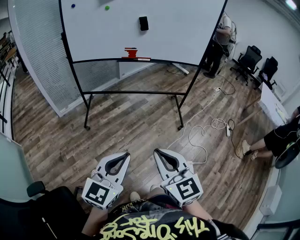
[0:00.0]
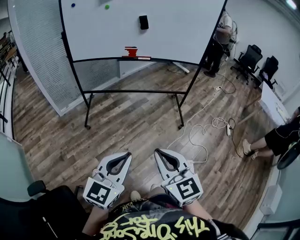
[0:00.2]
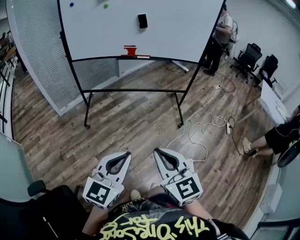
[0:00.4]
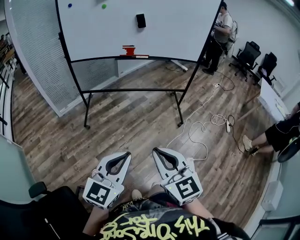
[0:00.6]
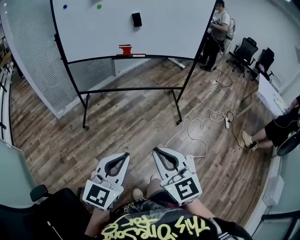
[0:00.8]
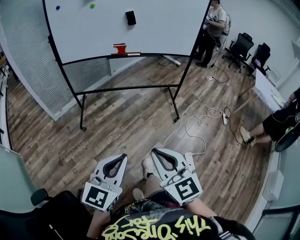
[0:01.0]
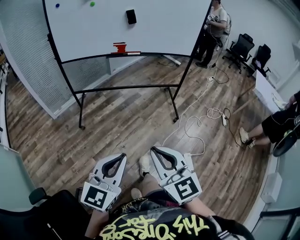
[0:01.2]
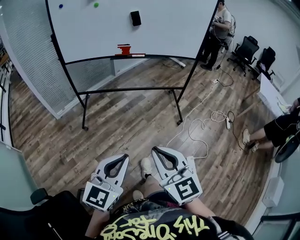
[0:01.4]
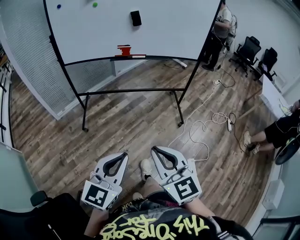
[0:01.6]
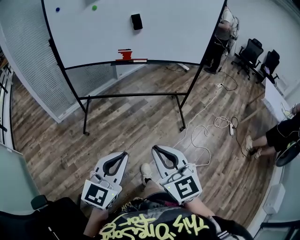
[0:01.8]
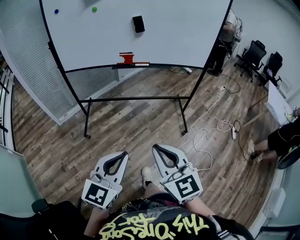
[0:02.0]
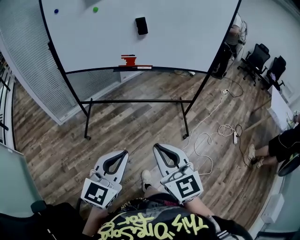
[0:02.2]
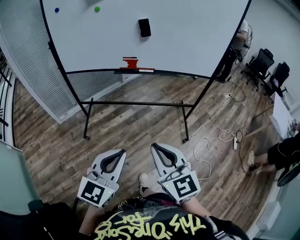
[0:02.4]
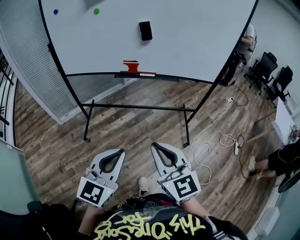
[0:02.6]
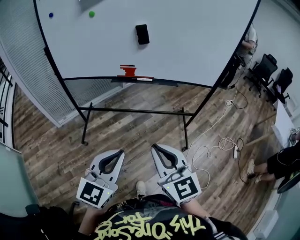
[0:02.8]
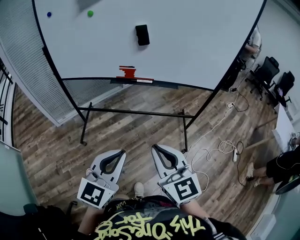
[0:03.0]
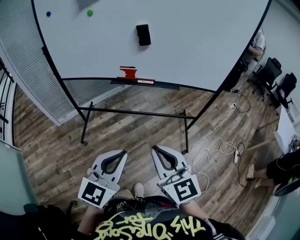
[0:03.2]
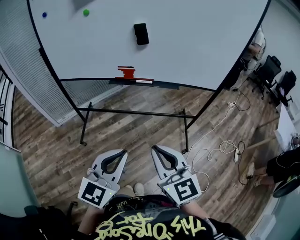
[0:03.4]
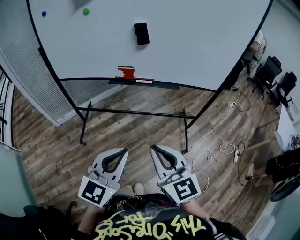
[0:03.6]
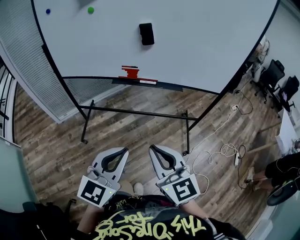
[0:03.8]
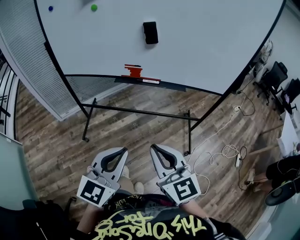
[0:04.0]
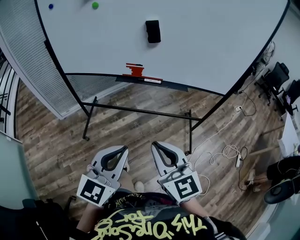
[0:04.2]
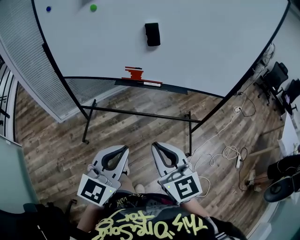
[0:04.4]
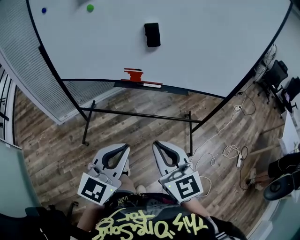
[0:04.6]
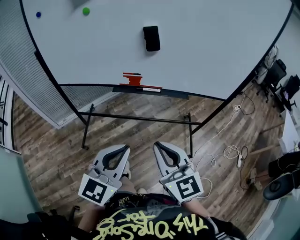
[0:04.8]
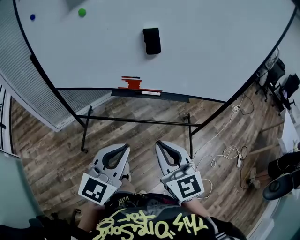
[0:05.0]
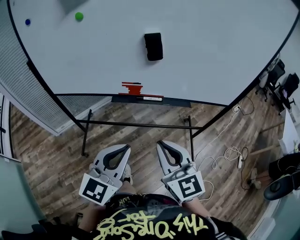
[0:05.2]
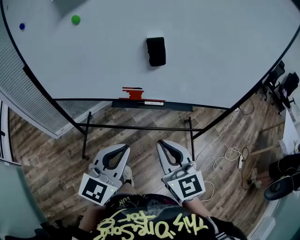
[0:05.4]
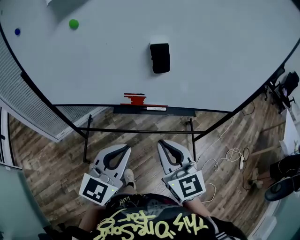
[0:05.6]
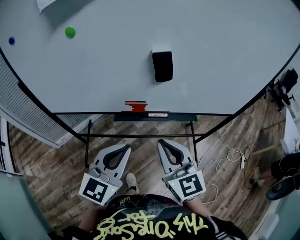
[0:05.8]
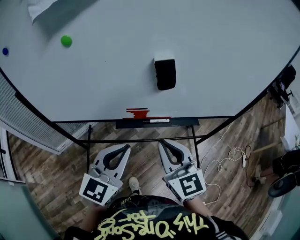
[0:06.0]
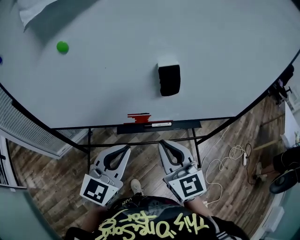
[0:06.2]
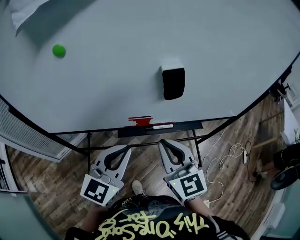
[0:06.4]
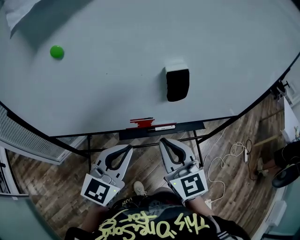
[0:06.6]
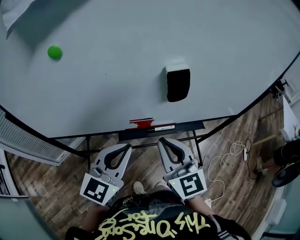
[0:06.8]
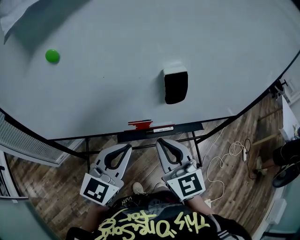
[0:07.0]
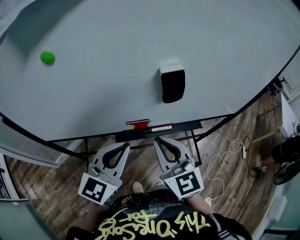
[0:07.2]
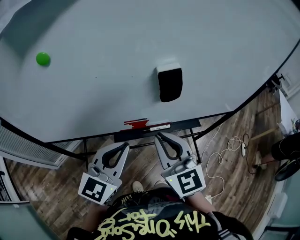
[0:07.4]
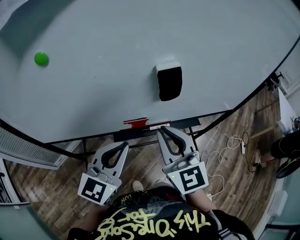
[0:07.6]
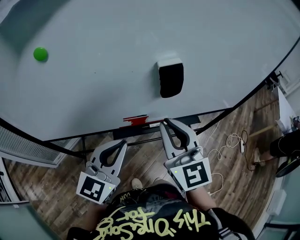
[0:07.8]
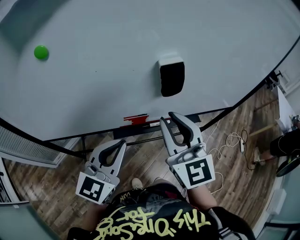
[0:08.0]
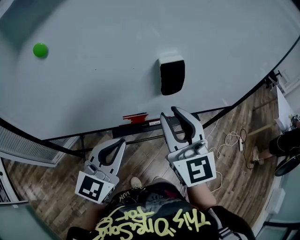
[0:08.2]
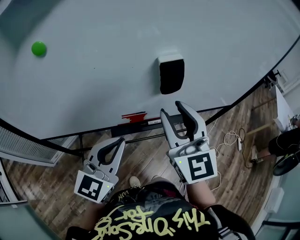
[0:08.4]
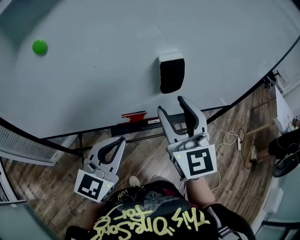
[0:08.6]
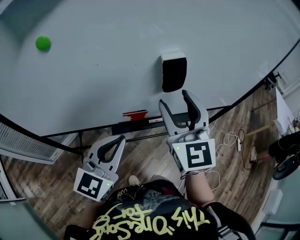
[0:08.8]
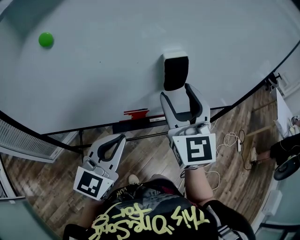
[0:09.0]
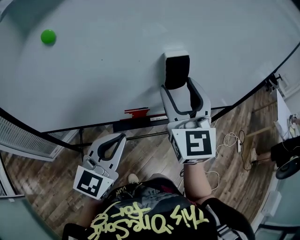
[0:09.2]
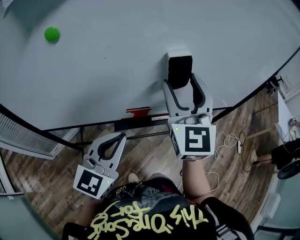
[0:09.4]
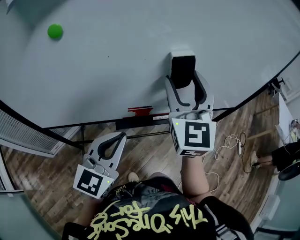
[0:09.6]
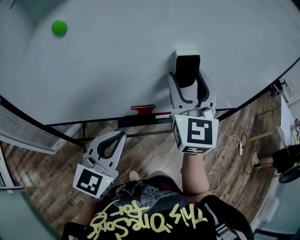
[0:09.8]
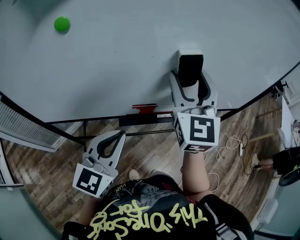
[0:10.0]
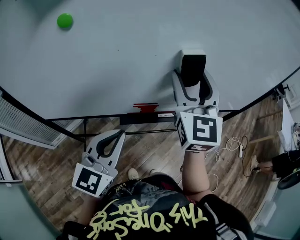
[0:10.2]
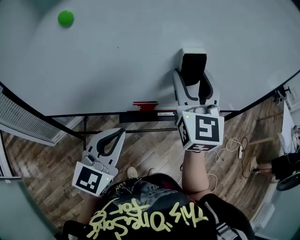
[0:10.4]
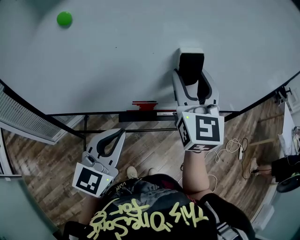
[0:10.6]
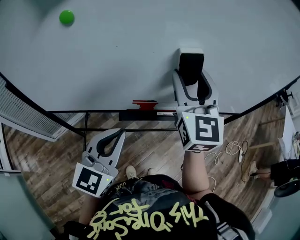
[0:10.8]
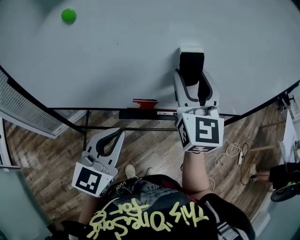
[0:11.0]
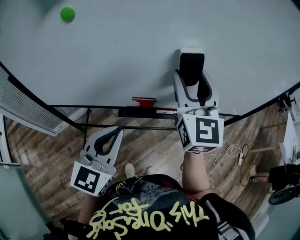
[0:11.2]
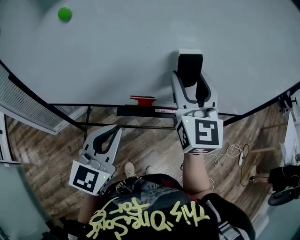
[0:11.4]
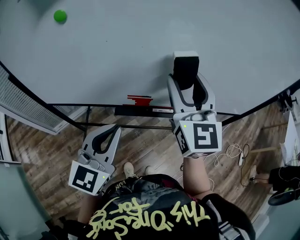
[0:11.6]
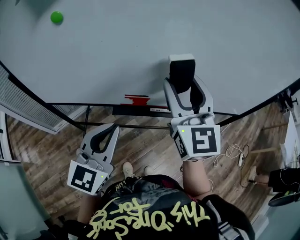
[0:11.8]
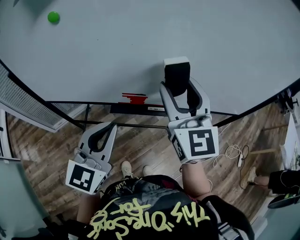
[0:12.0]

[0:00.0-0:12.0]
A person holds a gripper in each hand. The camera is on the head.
0:00.0 to 0:01.6: Both grippers move forward, about 5 cm.
0:01.6 to 0:03.0: Both grippers travel together forward, approximately 25 cm.
0:03.0 to 0:04.4: Both grippers move forward, about 5 cm.
0:04.4 to 0:06.0: The grippers both shift forward by about 25 cm.
0:06.0 to 0:07.6: The grippers both shift forward by about 5 cm.
0:07.6 to 0:09.0: The right gripper shifts about 10 cm forward and upward, and opens up.
0:09.0 to 0:10.4: The grippers move only a little.
0:10.4 to 0:12.0: The right gripper moves approximately 5 cm.

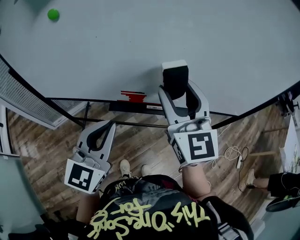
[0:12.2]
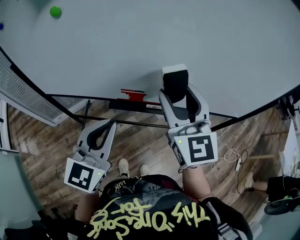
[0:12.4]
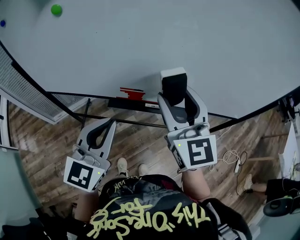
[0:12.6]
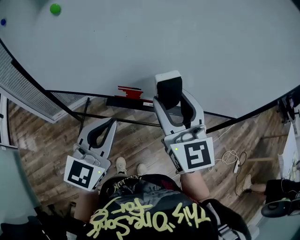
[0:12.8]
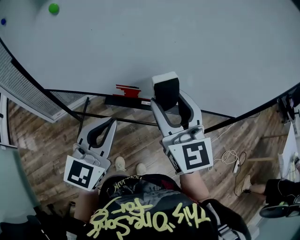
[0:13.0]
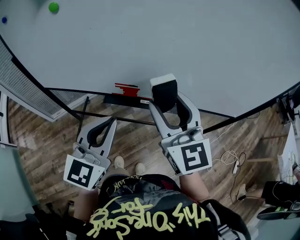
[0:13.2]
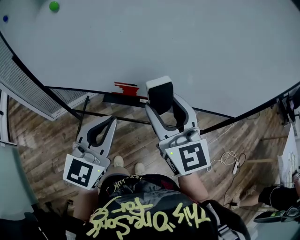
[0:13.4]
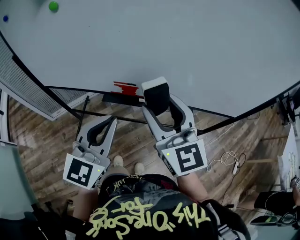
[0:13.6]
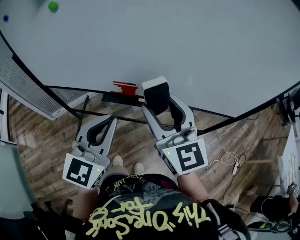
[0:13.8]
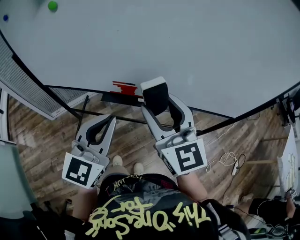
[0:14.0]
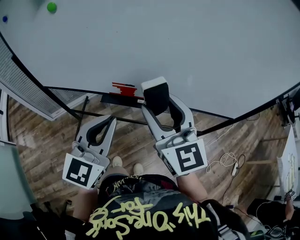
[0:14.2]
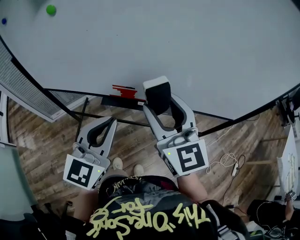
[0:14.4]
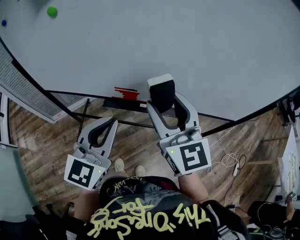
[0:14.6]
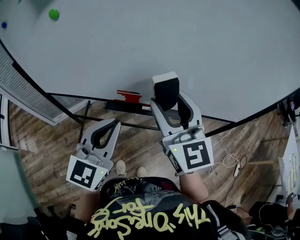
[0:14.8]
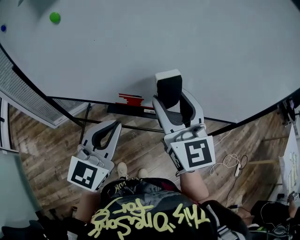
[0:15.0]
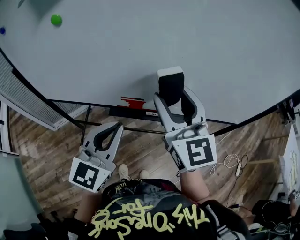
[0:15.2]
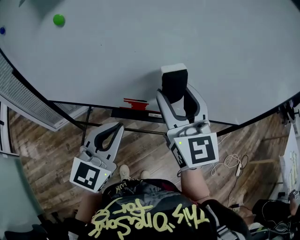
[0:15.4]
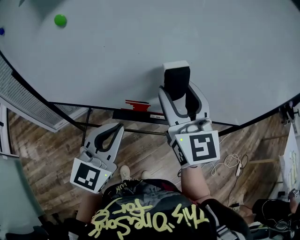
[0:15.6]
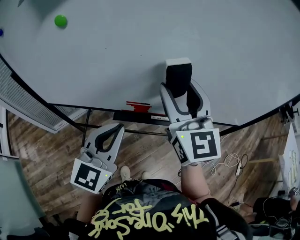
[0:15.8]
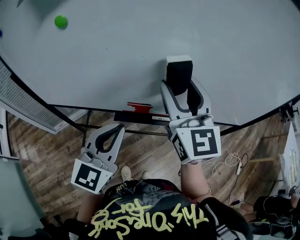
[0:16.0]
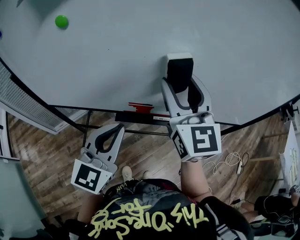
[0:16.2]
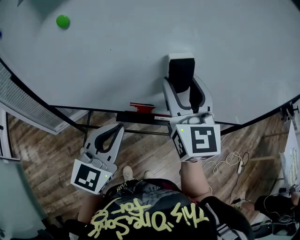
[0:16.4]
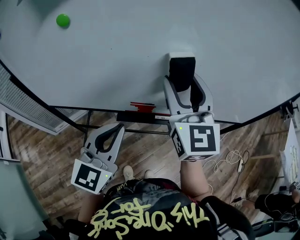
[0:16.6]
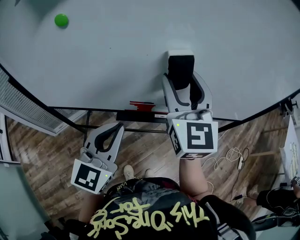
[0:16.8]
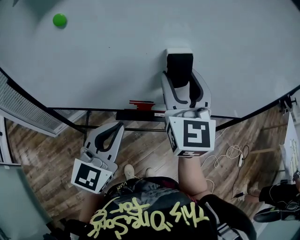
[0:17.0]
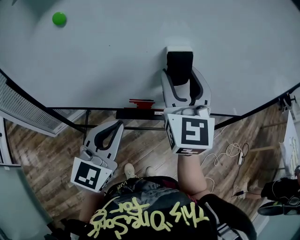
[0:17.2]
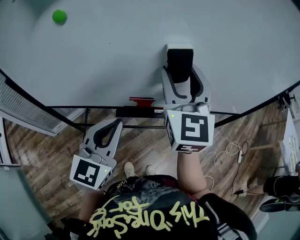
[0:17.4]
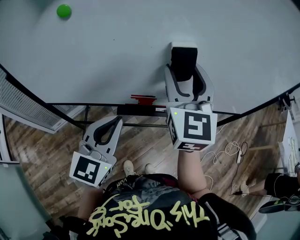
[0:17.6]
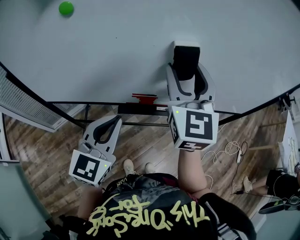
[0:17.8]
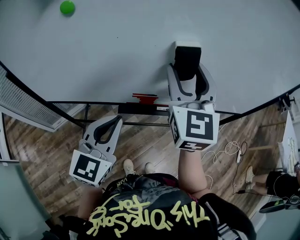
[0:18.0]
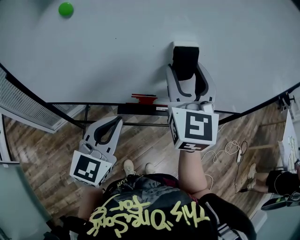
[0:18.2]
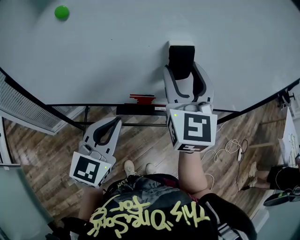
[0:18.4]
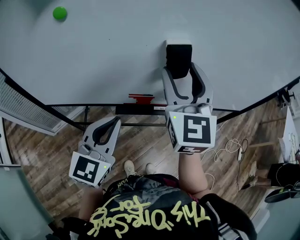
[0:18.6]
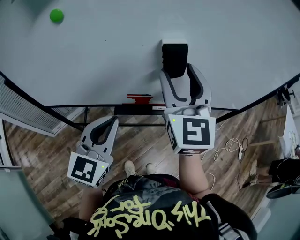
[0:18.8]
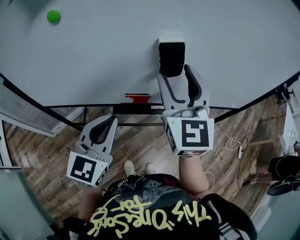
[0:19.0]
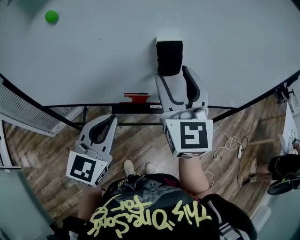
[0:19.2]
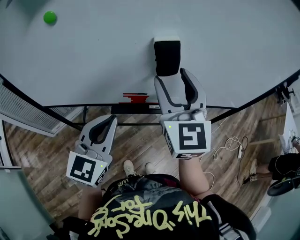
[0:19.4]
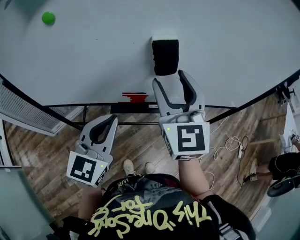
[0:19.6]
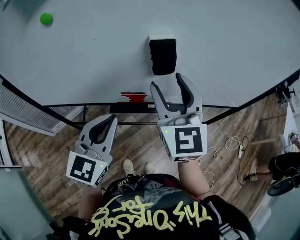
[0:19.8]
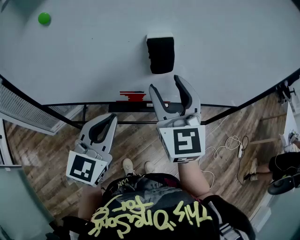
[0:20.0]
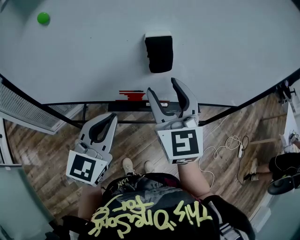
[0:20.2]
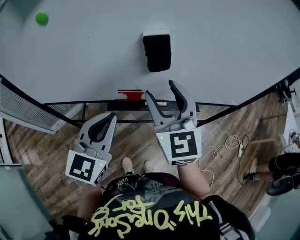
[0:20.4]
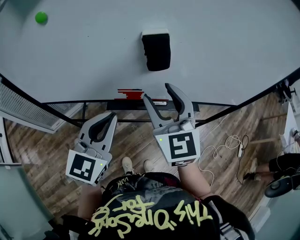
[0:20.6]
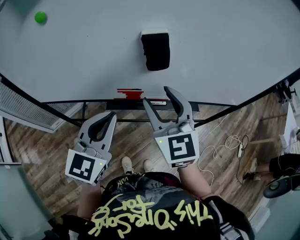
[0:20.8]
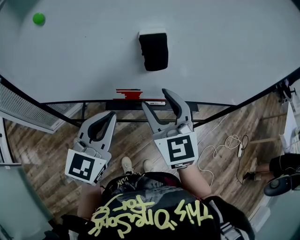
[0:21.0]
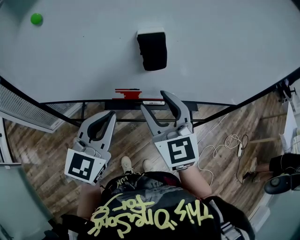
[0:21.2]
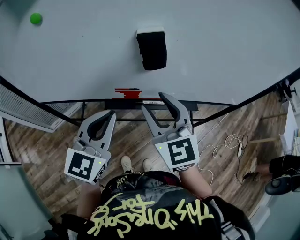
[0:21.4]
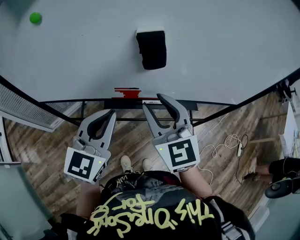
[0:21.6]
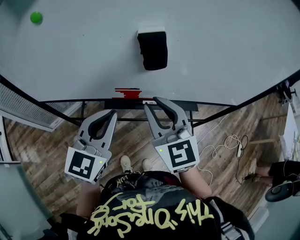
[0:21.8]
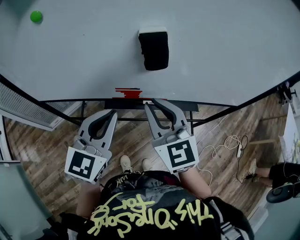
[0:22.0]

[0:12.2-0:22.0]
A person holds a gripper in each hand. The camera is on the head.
0:12.2 to 0:13.6: The right gripper travels backward by about 5 cm.
0:13.6 to 0:15.0: The grippers make only small movements.
0:15.0 to 0:16.4: The right gripper heads forward, covering about 5 cm.
0:16.4 to 0:19.2: The grippers move only a little.
0:19.2 to 0:20.6: The right gripper moves downward, approximately 5 cm.
0:20.6 to 0:22.0: The right gripper closes its fingers.

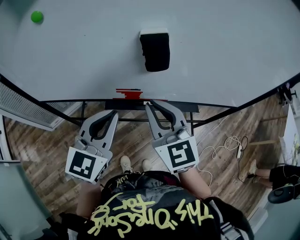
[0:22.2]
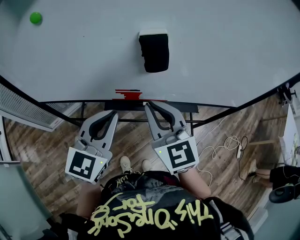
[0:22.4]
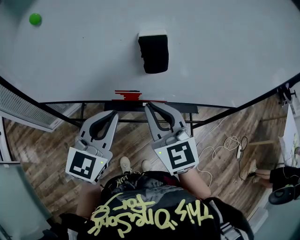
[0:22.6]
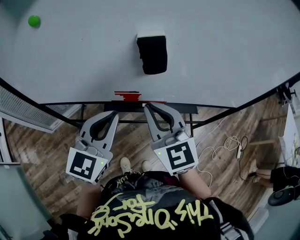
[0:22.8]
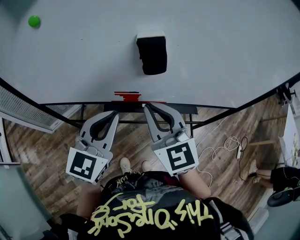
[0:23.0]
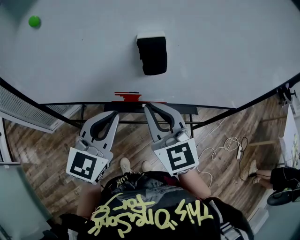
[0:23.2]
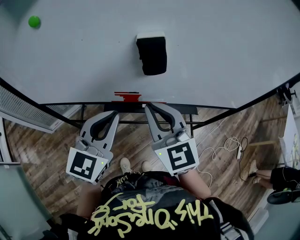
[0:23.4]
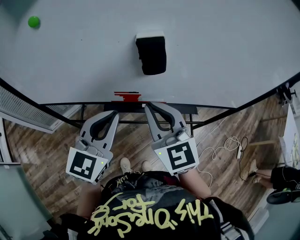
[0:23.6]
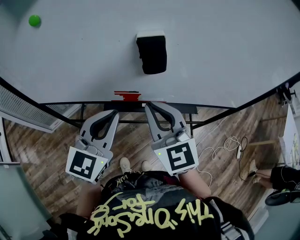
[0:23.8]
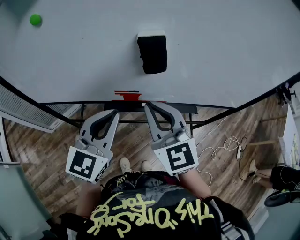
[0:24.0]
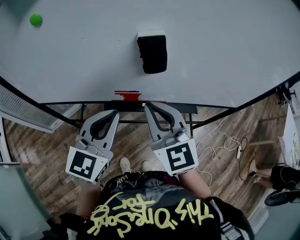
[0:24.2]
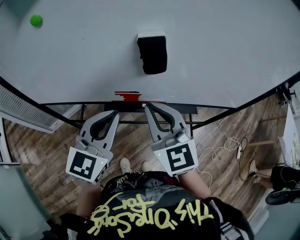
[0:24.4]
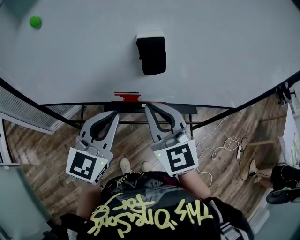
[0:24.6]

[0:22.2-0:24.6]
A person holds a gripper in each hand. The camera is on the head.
0:22.2 to 0:24.6: Both grippers stay put.
